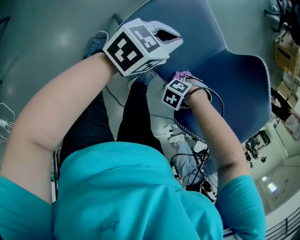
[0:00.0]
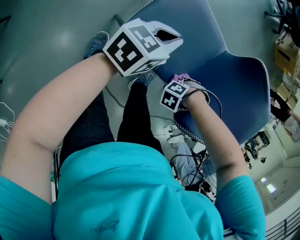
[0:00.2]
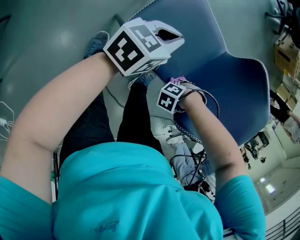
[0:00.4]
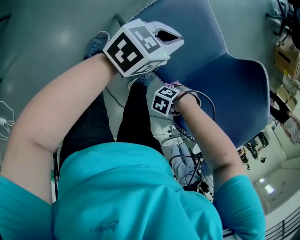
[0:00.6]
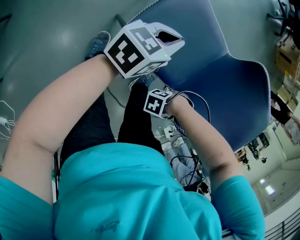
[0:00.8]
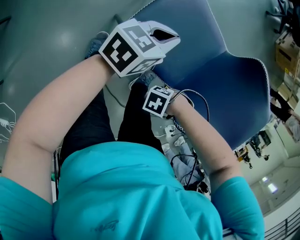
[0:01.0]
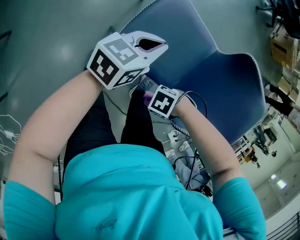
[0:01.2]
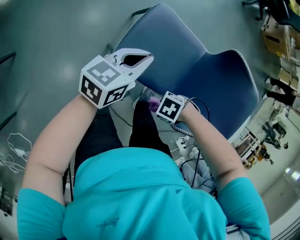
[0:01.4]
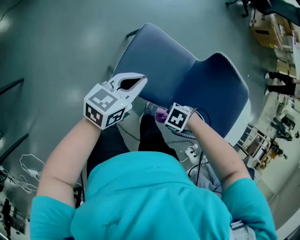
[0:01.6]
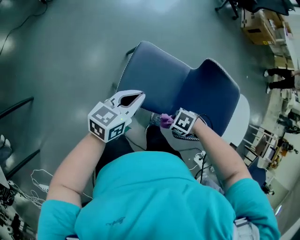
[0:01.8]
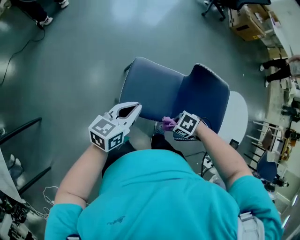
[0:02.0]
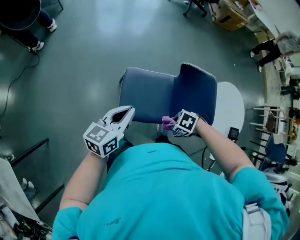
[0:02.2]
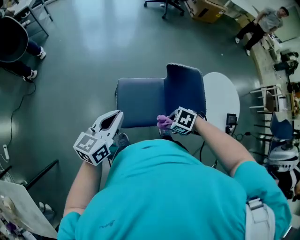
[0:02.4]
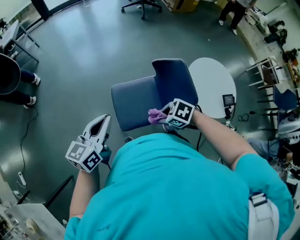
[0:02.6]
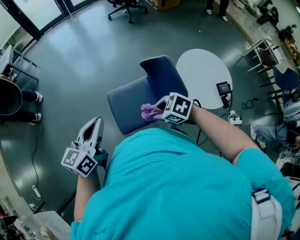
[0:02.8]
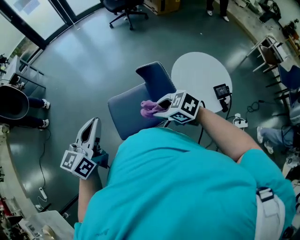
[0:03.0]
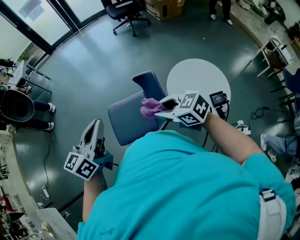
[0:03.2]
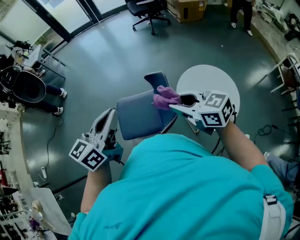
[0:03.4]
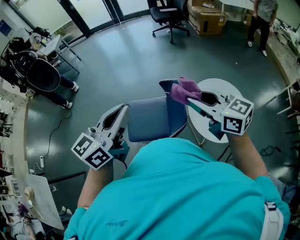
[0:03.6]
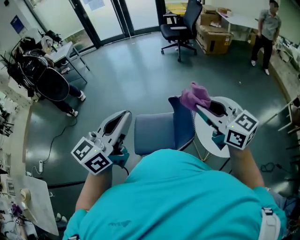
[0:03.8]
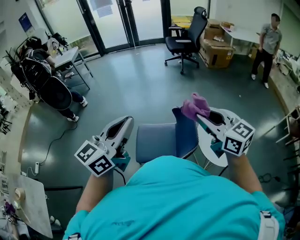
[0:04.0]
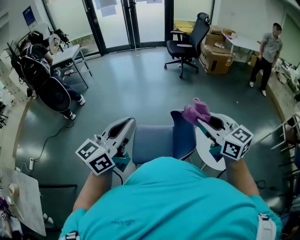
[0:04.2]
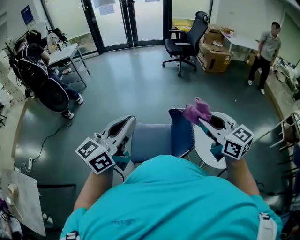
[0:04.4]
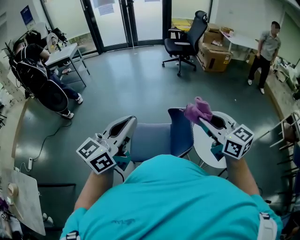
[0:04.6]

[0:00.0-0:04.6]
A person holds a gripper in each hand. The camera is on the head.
0:00.0 to 0:01.6: The left gripper moves upward, roughly 10 cm.
0:01.6 to 0:03.0: The left gripper shifts approximately 35 cm upward, and turns by about 20 degrees.
0:03.0 to 0:04.6: The left gripper heads upward, covering about 15 cm.

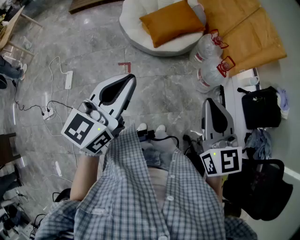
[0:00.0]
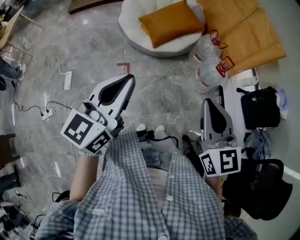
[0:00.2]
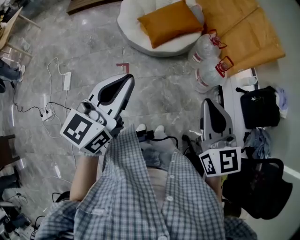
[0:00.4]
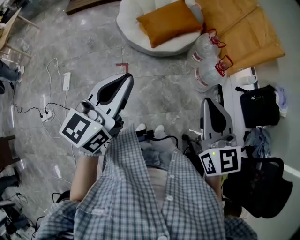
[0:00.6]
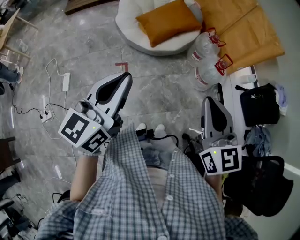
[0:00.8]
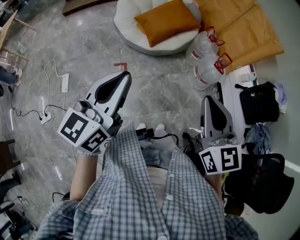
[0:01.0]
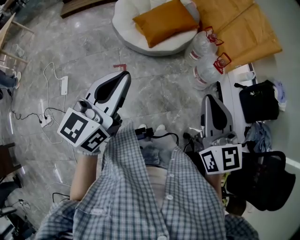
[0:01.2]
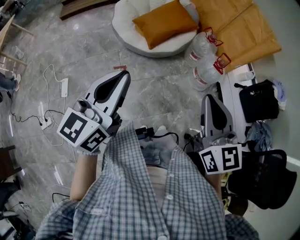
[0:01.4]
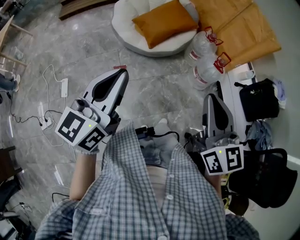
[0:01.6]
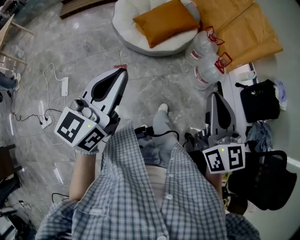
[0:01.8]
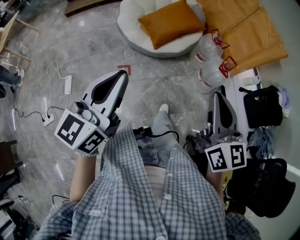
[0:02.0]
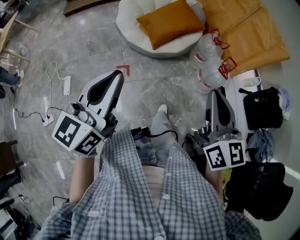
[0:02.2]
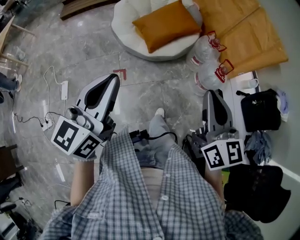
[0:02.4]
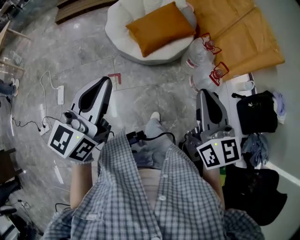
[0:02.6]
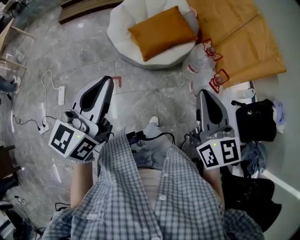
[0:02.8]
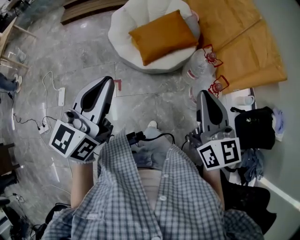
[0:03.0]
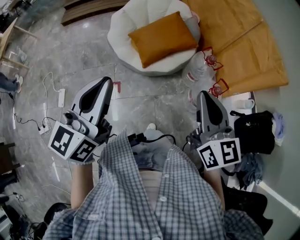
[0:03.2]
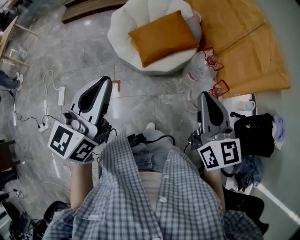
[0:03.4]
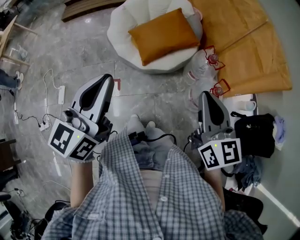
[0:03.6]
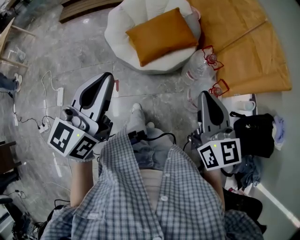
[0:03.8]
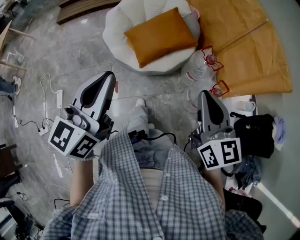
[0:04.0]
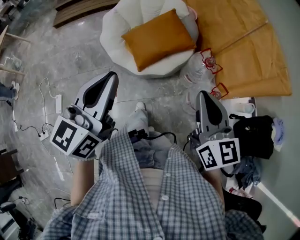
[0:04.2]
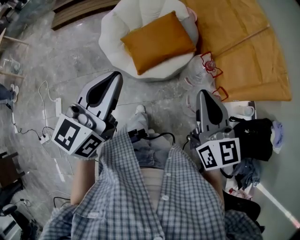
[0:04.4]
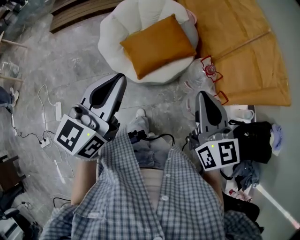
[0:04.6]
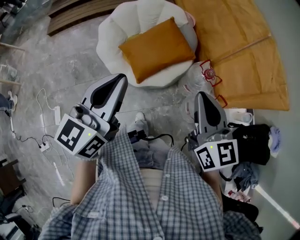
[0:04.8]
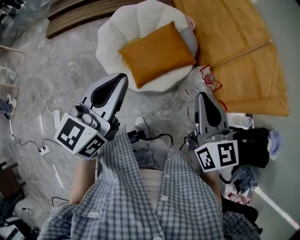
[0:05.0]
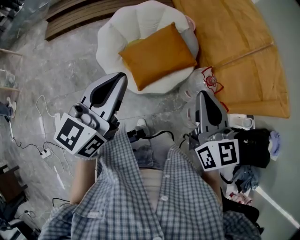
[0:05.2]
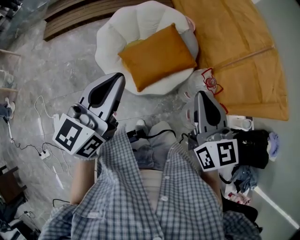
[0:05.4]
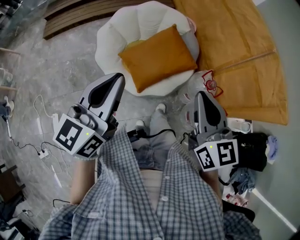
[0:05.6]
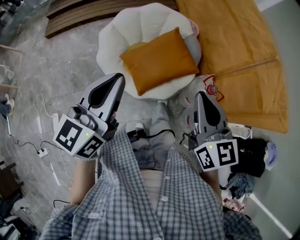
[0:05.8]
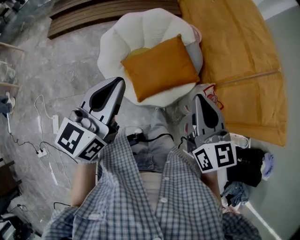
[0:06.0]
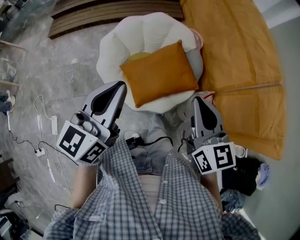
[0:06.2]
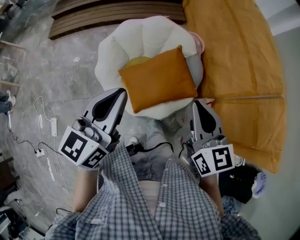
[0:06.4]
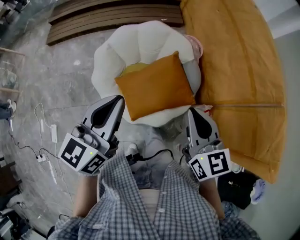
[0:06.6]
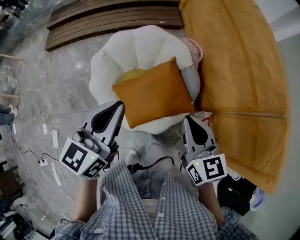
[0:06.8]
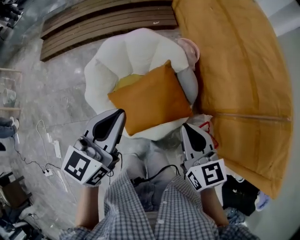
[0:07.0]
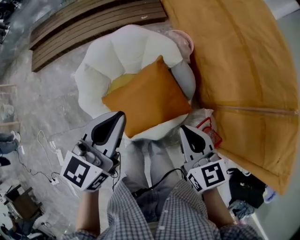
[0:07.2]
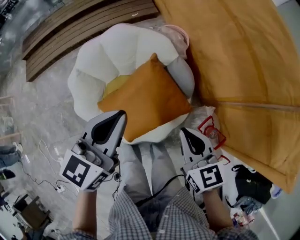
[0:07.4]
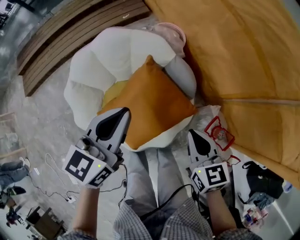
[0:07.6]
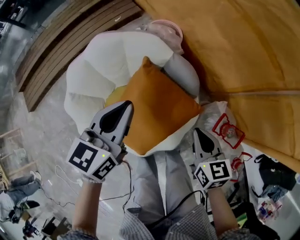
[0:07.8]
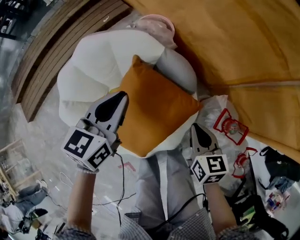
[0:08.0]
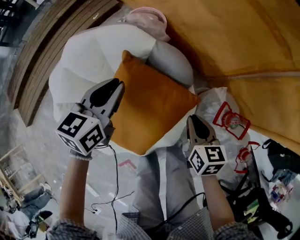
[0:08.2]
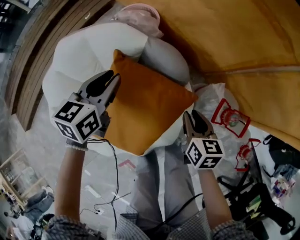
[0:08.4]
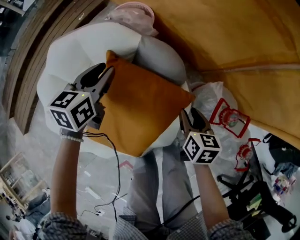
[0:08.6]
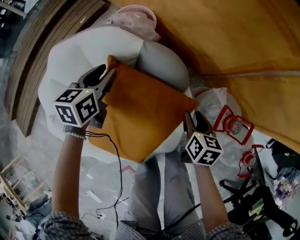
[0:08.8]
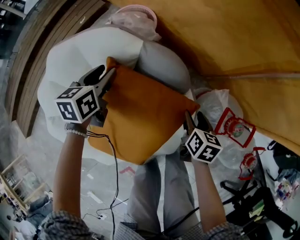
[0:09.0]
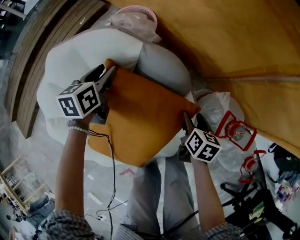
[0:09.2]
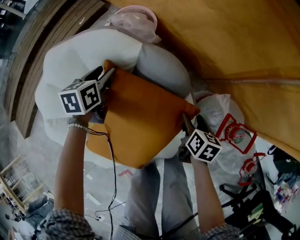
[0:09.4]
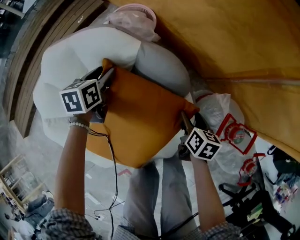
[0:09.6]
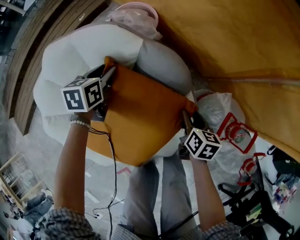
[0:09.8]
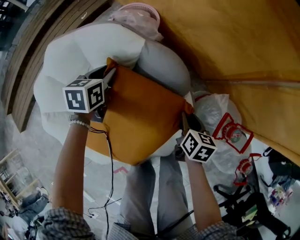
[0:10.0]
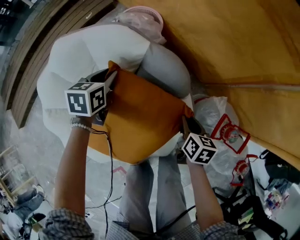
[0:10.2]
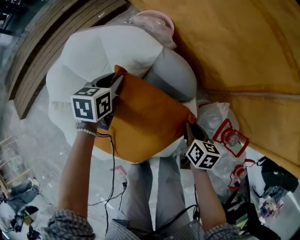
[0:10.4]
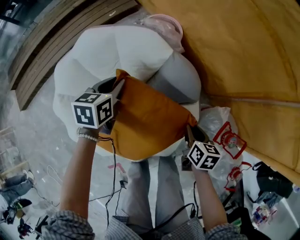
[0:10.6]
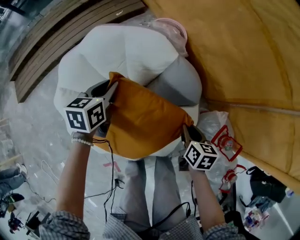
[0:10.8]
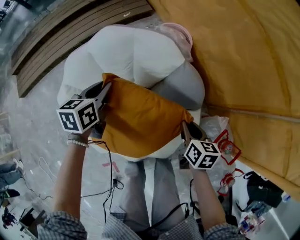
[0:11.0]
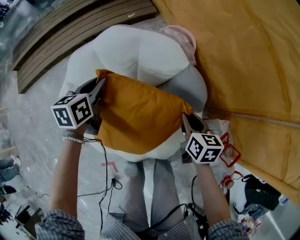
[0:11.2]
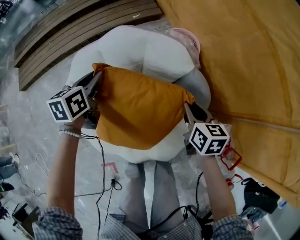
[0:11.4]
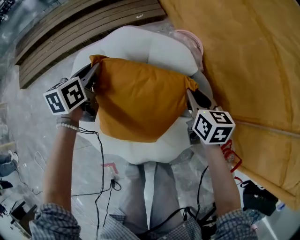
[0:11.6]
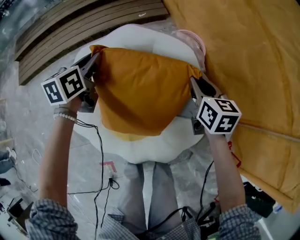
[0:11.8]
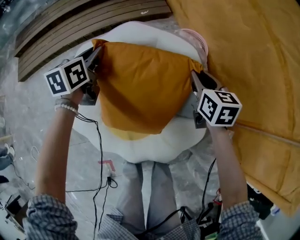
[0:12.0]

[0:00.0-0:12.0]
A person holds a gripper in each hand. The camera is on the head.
0:00.0 to 0:01.6: The left gripper shifts approximately 5 cm to the left.
0:01.6 to 0:03.0: Both grippers move forward, about 15 cm.
0:03.0 to 0:04.4: Both grippers travel together forward, roughly 15 cm.
0:04.4 to 0:06.0: Both grippers move forward, about 20 cm.
0:06.0 to 0:07.6: The left gripper shifts approximately 40 cm forward, downward and to the right, and changes its angle by approximately 30 degrees. The right gripper heads downward, forward and to the right, covering about 35 cm, and swivels some 30 degrees.
0:07.6 to 0:09.0: The right gripper heads downward, covering some 25 cm, rotates around the line of its fingers by approximately 40 degrees, clockwise from behind, and opens; the left gripper shifts some 35 cm downward and forward, rotates about 20 degrees, and opens.
0:09.0 to 0:10.4: The left gripper changes place by some 5 cm, and closes. The right gripper closes its fingers.
0:10.4 to 0:12.0: The right gripper shifts about 35 cm forward, to the left and upward, and changes its angle by some 40 degrees, while the left gripper moves to the left and upward, some 25 cm, and turns by some 30 degrees.

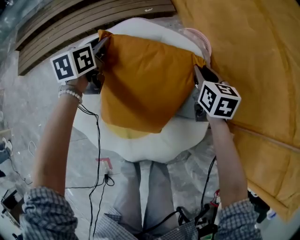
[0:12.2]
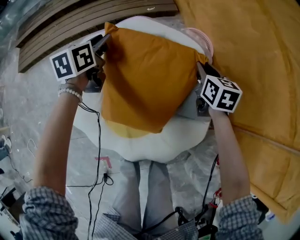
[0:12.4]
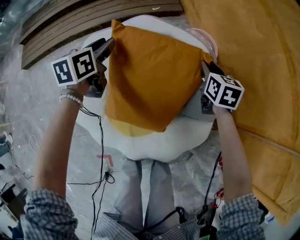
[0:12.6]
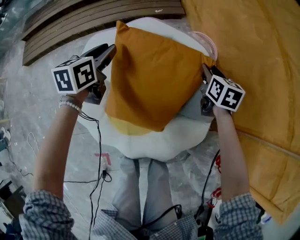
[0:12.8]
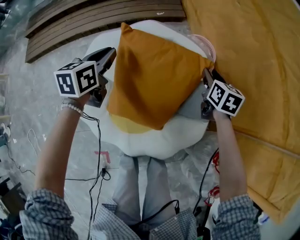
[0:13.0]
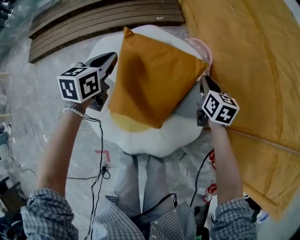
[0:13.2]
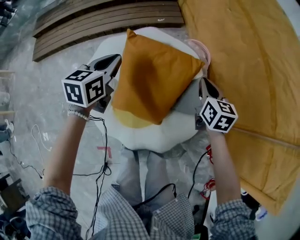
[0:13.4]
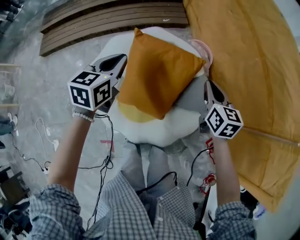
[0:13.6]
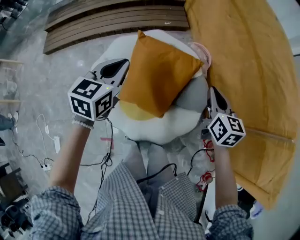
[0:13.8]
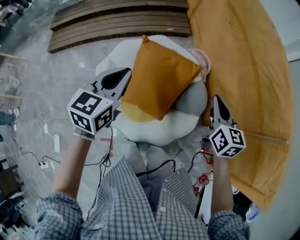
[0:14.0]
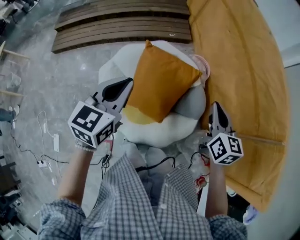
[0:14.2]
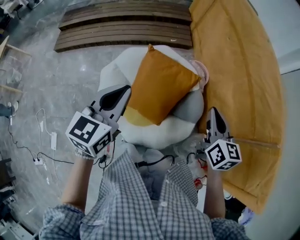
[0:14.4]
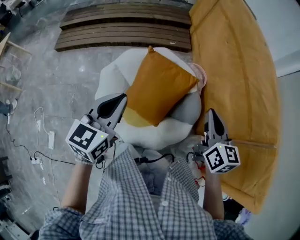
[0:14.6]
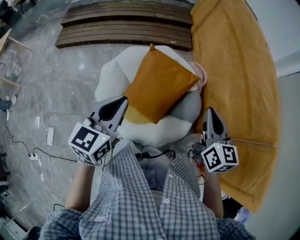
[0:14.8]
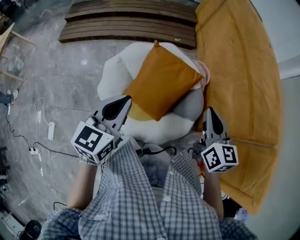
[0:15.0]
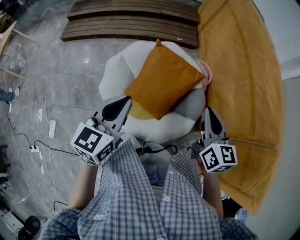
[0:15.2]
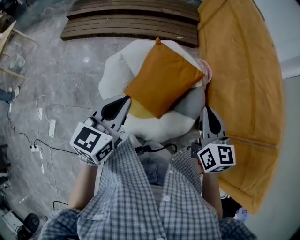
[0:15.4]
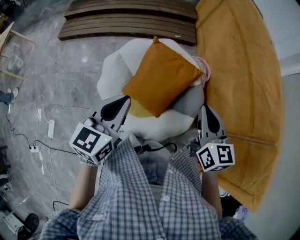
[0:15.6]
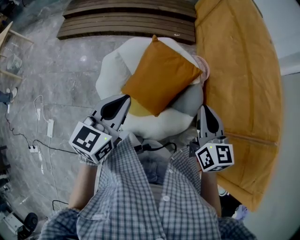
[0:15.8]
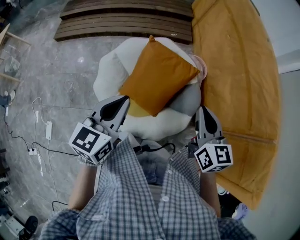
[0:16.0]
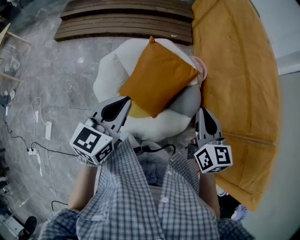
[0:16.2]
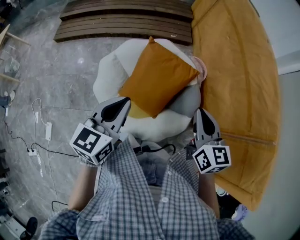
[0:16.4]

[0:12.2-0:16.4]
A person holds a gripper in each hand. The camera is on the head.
0:12.2 to 0:13.6: The grippers both shift upward and backward by roughly 20 cm.
0:13.6 to 0:15.0: The right gripper goes some 25 cm upward and backward; the left gripper moves backward and upward, approximately 25 cm.
0:15.0 to 0:16.4: The grippers make only small movements.

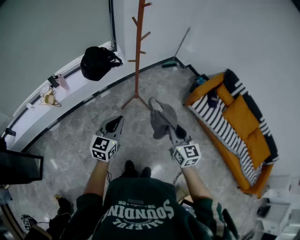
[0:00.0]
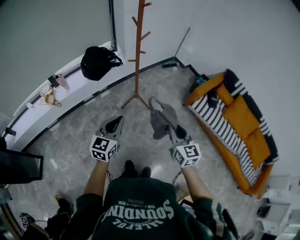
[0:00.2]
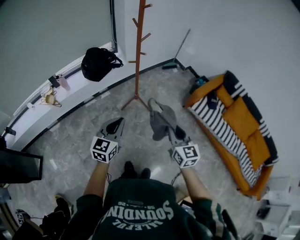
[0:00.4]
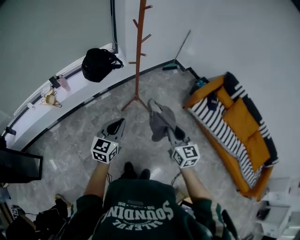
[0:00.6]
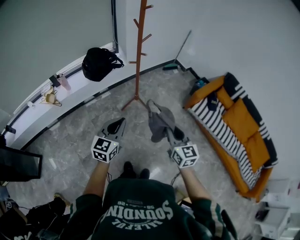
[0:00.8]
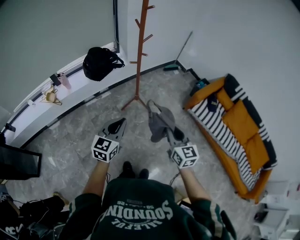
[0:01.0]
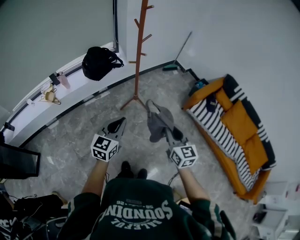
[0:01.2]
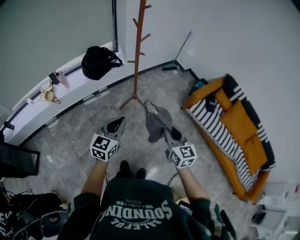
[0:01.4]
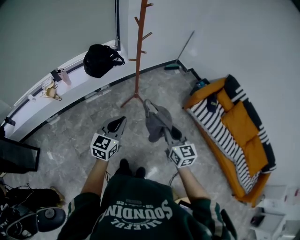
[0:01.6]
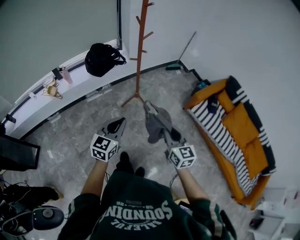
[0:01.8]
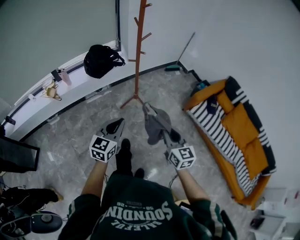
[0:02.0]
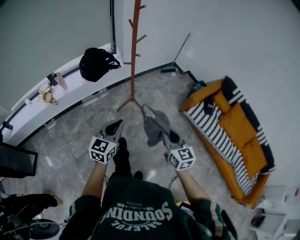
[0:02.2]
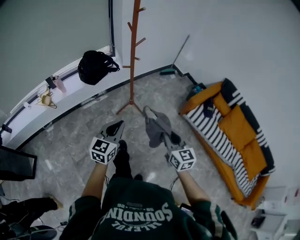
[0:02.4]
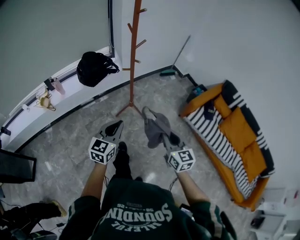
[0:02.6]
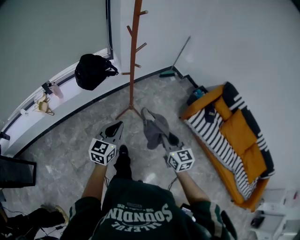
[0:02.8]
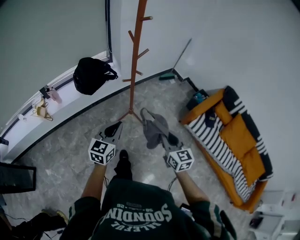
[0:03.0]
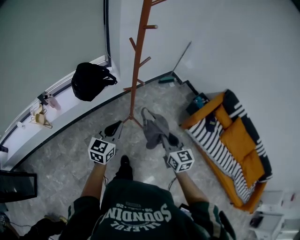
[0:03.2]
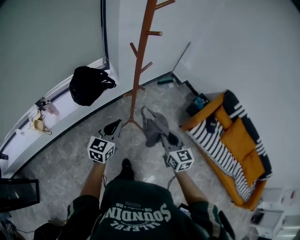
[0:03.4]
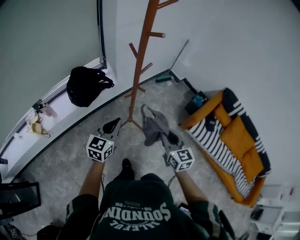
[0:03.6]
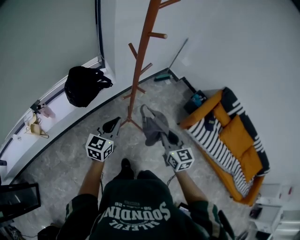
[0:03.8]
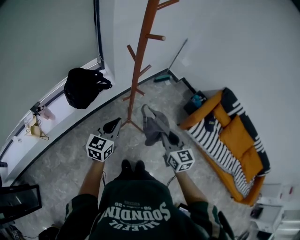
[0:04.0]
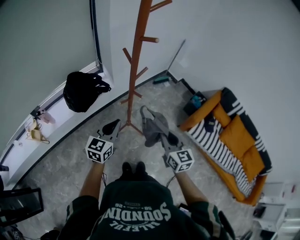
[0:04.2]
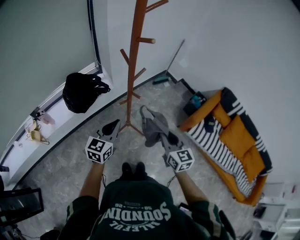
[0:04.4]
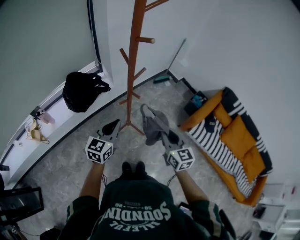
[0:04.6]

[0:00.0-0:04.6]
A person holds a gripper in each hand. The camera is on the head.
0:00.0 to 0:01.6: The grippers stay close to where they were, moving slightly.
0:01.6 to 0:03.0: The two grippers go approximately 20 cm forward.
0:03.0 to 0:04.6: Both grippers move forward, approximately 15 cm.
